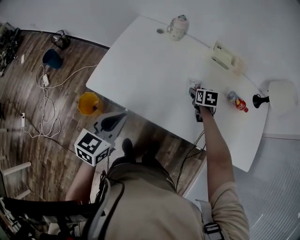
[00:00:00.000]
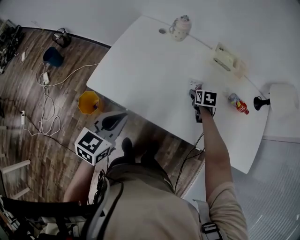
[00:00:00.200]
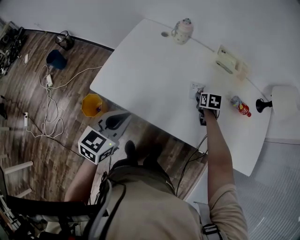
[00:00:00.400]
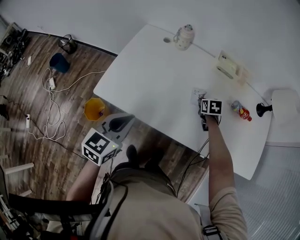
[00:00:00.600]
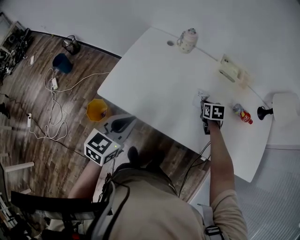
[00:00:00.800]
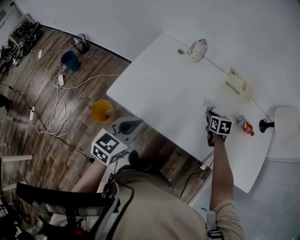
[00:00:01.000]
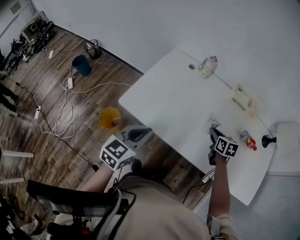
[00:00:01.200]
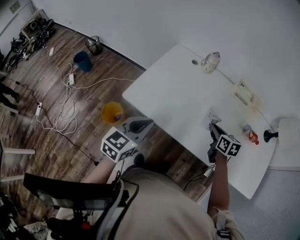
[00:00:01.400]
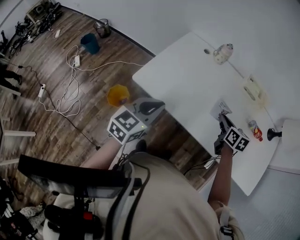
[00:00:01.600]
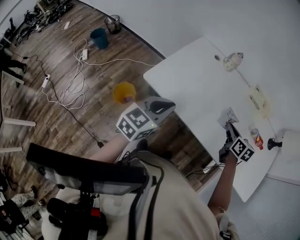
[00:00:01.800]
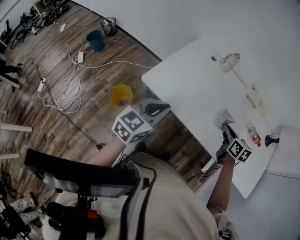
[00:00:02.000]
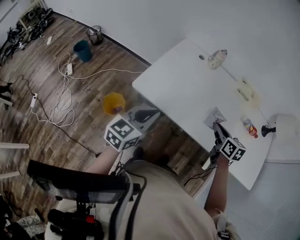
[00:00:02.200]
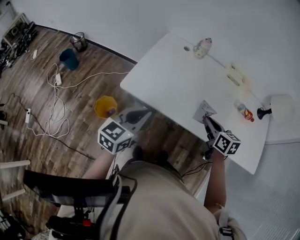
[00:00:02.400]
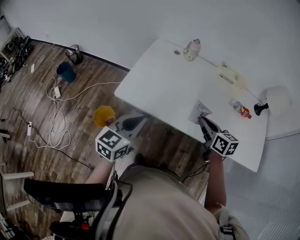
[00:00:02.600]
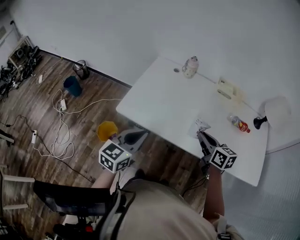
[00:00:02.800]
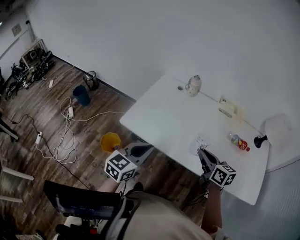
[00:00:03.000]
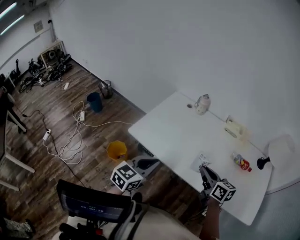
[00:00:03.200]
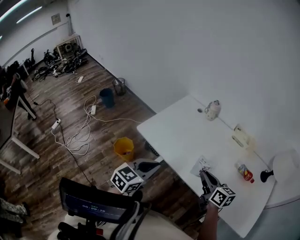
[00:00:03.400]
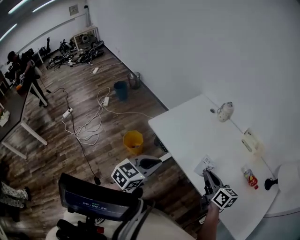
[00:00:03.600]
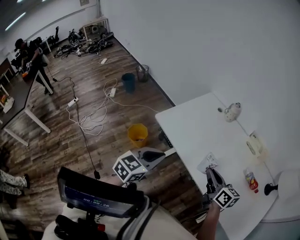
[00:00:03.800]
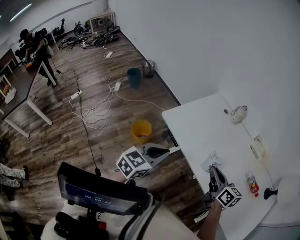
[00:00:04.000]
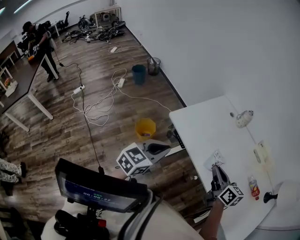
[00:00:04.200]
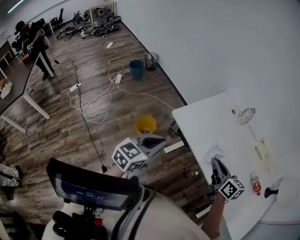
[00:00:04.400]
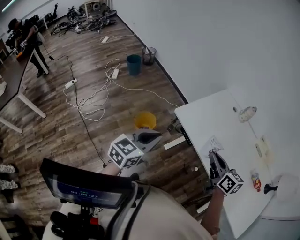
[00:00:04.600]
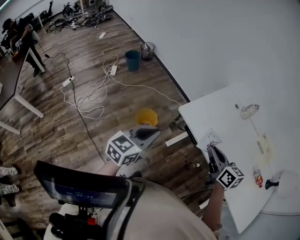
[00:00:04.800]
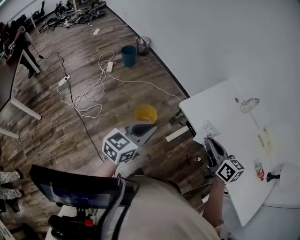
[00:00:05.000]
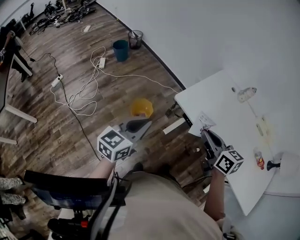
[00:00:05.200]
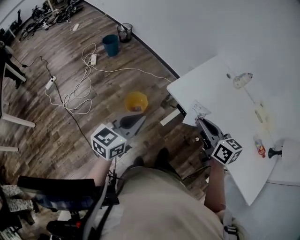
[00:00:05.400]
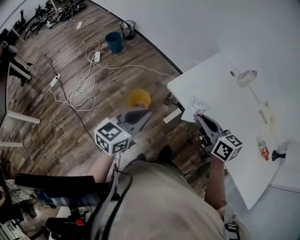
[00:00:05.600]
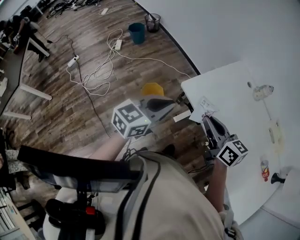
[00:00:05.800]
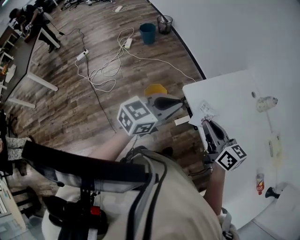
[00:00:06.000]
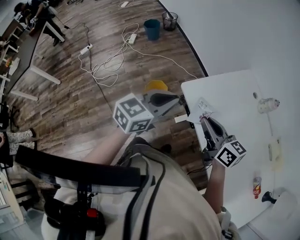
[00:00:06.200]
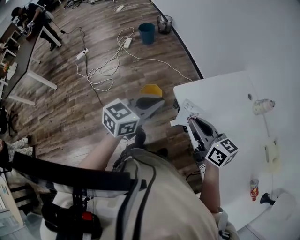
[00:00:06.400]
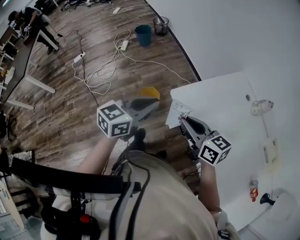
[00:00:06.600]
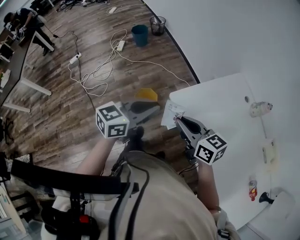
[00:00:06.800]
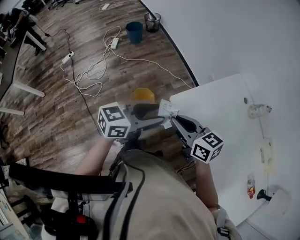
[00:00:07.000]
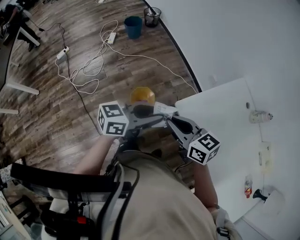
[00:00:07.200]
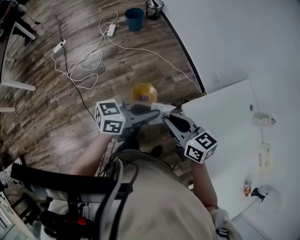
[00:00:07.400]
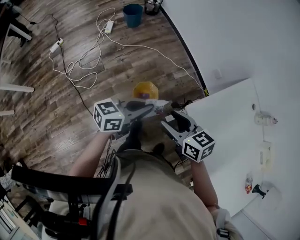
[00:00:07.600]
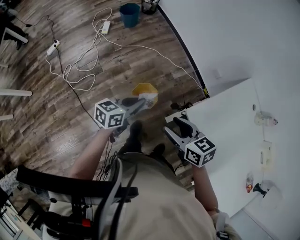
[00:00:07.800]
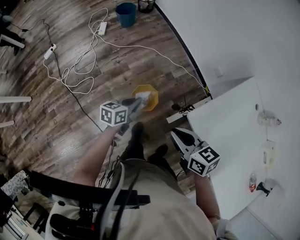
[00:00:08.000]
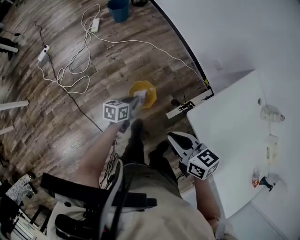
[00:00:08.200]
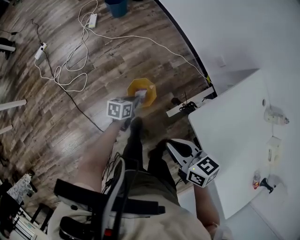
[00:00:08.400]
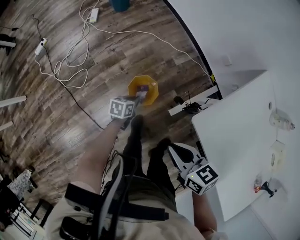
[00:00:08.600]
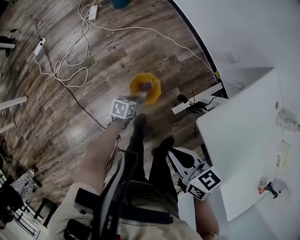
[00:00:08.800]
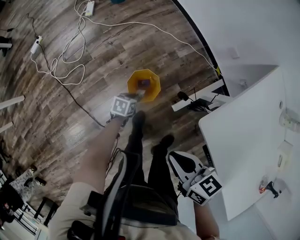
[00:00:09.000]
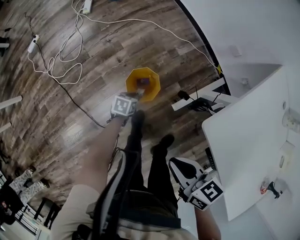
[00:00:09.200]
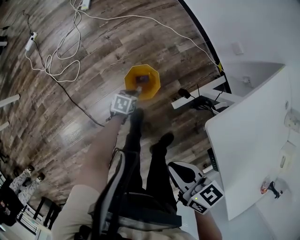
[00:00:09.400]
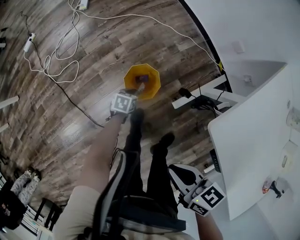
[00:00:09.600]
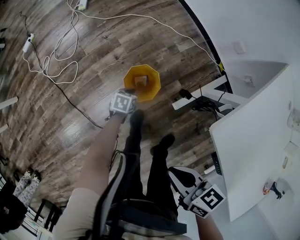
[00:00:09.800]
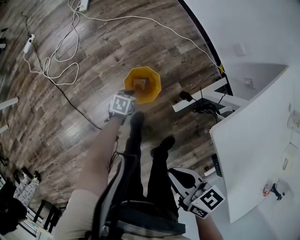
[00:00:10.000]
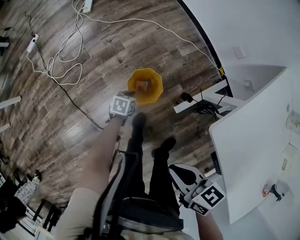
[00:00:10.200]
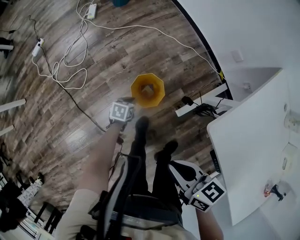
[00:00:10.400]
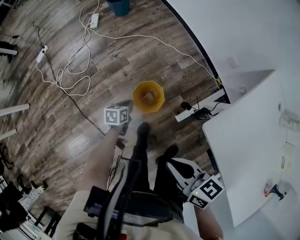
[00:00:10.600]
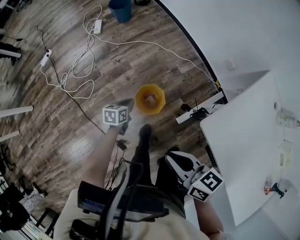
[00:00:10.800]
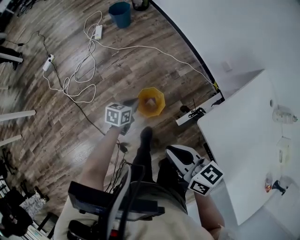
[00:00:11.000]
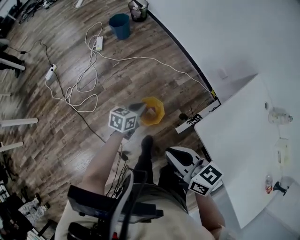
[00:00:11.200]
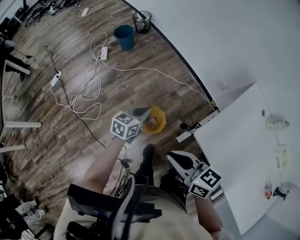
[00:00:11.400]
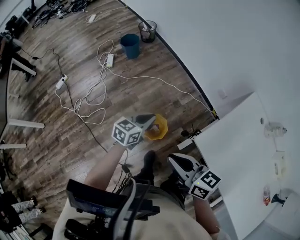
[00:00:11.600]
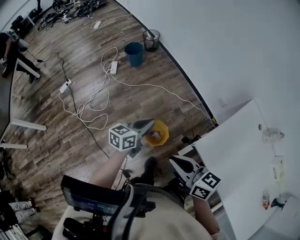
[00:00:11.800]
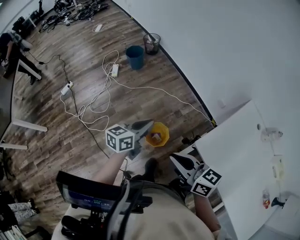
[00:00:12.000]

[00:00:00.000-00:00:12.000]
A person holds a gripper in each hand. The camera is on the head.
00:00:00.000 to 00:00:01.600: The right gripper shifts some 15 cm upward and backward, swivels approximately 20 degrees, and closes. The left gripper shifts by about 5 cm.
00:00:01.600 to 00:00:03.000: The right gripper shifts about 20 cm backward and upward. Meanwhile the left gripper heads backward, covering some 10 cm, and moves roughly 10 cm to the left and comes back.
00:00:03.000 to 00:00:04.400: Both grippers move to the left, roughly 15 cm. The left gripper turns by roughly 20 degrees.
00:00:04.400 to 00:00:06.000: The left gripper shifts some 15 cm forward, and moves roughly 15 cm to the left and comes back. Meanwhile the right gripper goes some 20 cm to the left and forward, and swivels roughly 20 degrees.
00:00:06.000 to 00:00:07.600: Both grippers move to the left, forward and downward, some 30 cm. The left gripper changes its angle by some 20 degrees, and opens, then closes again, while the right gripper swivels some 20 degrees, and opens its fingers.
00:00:07.600 to 00:00:09.000: The right gripper moves downward, approximately 15 cm, and closes its fingers. Meanwhile the left gripper moves downward, about 50 cm, and points its fingers approximately 50 degrees further downward.
00:00:09.000 to 00:00:10.400: The left gripper travels downward and back again, about 10 cm each way.
00:00:10.400 to 00:00:12.000: The right gripper moves upward, some 25 cm, and changes its angle by some 30 degrees. Meanwhile the left gripper heads upward, covering about 50 cm, and angles its fingers upward, by some 40 degrees.

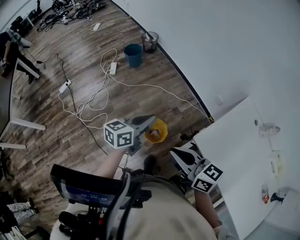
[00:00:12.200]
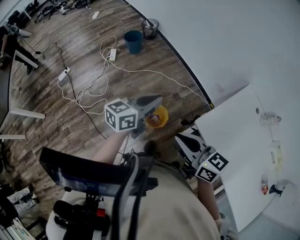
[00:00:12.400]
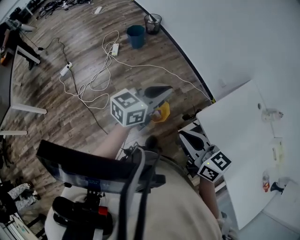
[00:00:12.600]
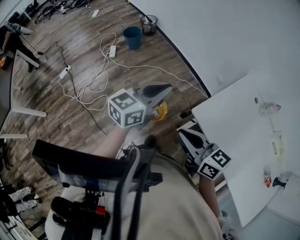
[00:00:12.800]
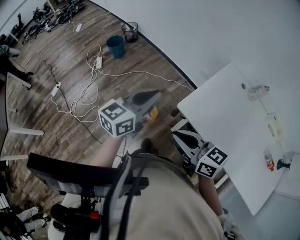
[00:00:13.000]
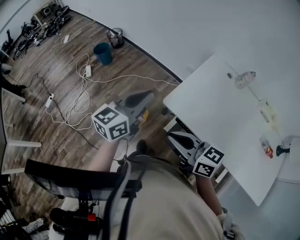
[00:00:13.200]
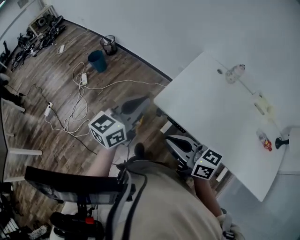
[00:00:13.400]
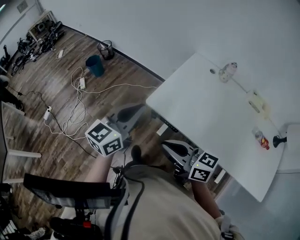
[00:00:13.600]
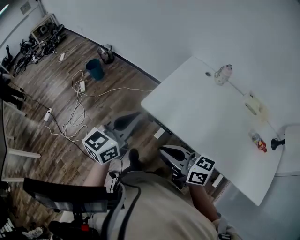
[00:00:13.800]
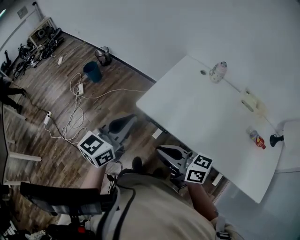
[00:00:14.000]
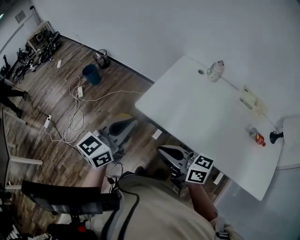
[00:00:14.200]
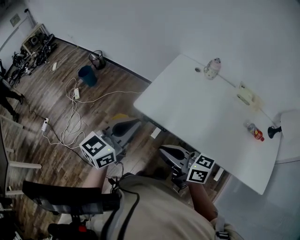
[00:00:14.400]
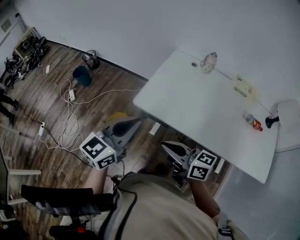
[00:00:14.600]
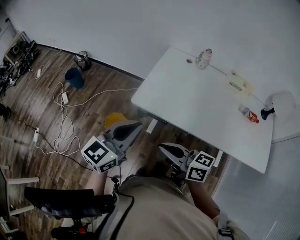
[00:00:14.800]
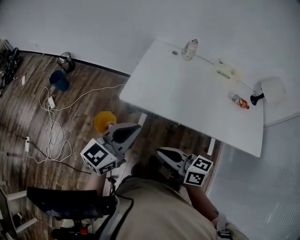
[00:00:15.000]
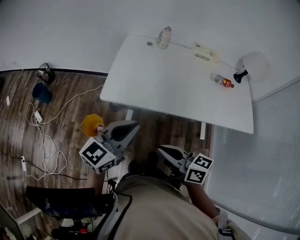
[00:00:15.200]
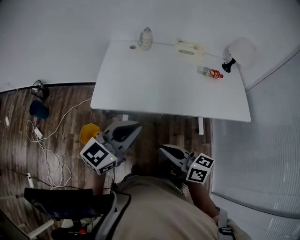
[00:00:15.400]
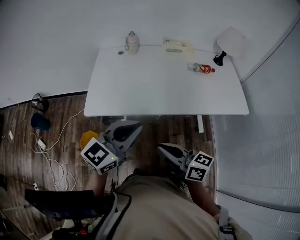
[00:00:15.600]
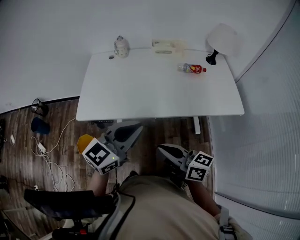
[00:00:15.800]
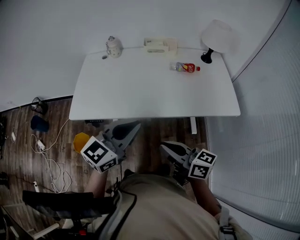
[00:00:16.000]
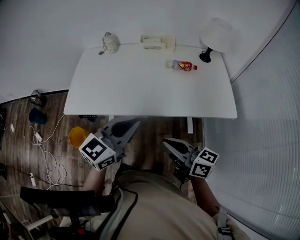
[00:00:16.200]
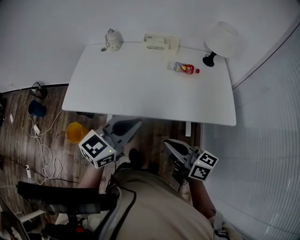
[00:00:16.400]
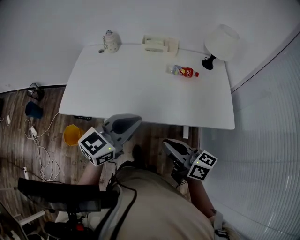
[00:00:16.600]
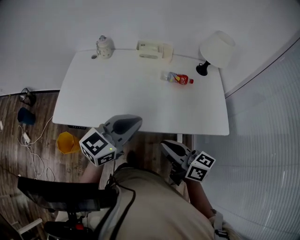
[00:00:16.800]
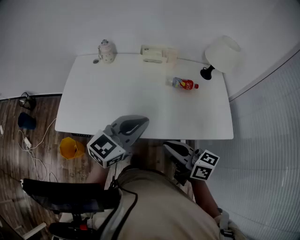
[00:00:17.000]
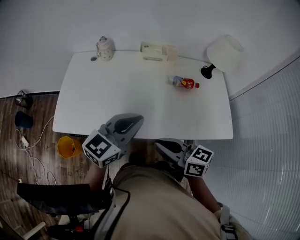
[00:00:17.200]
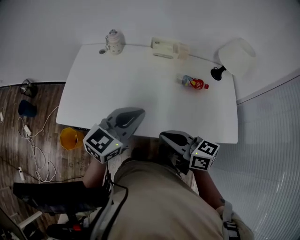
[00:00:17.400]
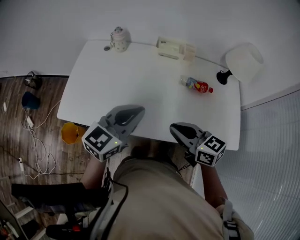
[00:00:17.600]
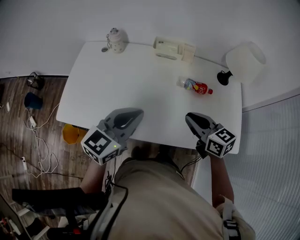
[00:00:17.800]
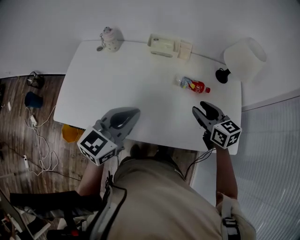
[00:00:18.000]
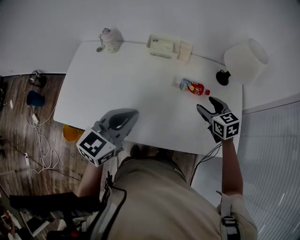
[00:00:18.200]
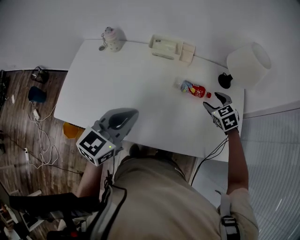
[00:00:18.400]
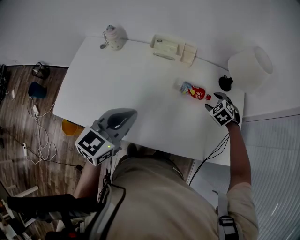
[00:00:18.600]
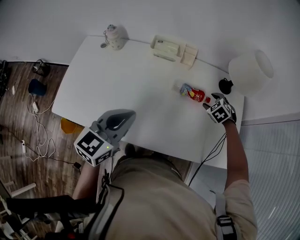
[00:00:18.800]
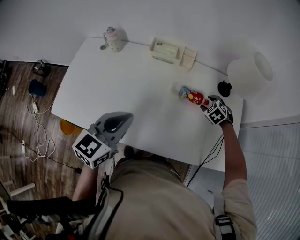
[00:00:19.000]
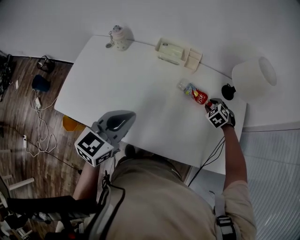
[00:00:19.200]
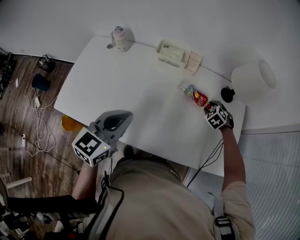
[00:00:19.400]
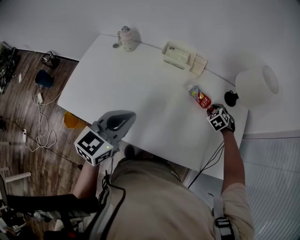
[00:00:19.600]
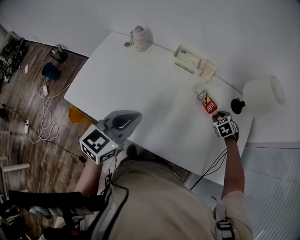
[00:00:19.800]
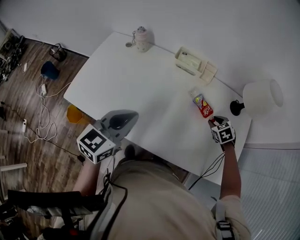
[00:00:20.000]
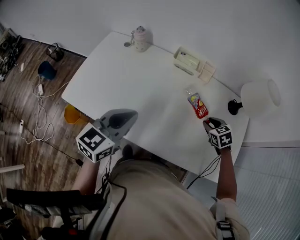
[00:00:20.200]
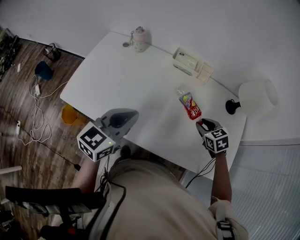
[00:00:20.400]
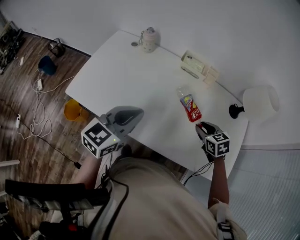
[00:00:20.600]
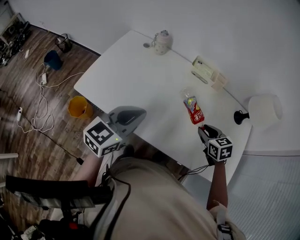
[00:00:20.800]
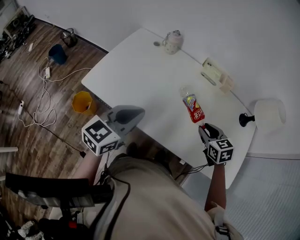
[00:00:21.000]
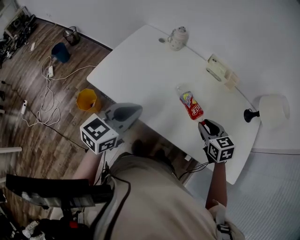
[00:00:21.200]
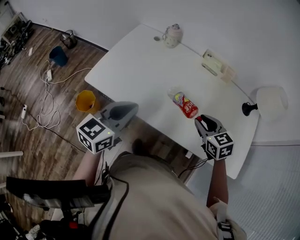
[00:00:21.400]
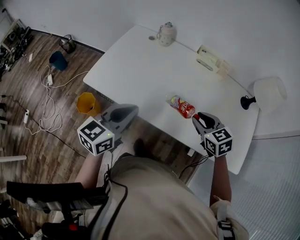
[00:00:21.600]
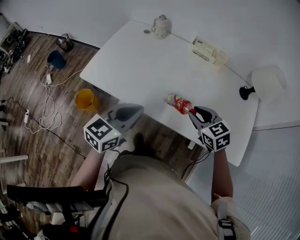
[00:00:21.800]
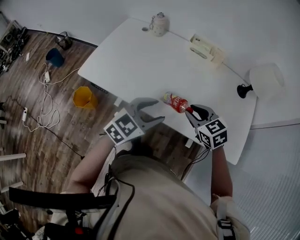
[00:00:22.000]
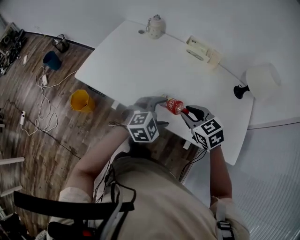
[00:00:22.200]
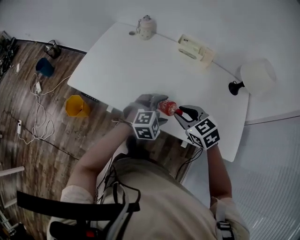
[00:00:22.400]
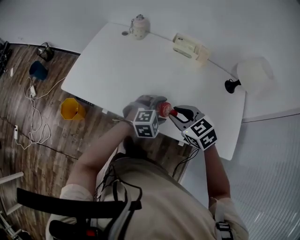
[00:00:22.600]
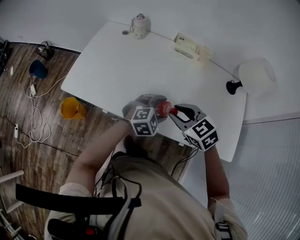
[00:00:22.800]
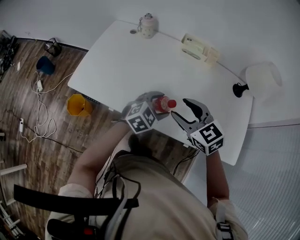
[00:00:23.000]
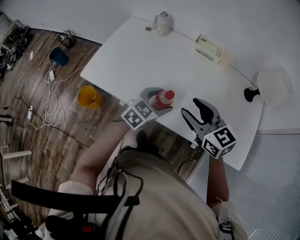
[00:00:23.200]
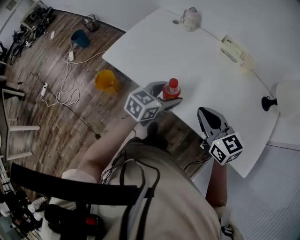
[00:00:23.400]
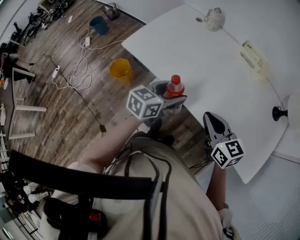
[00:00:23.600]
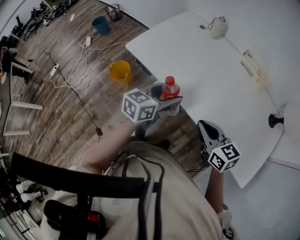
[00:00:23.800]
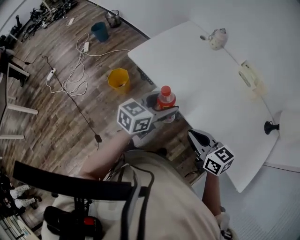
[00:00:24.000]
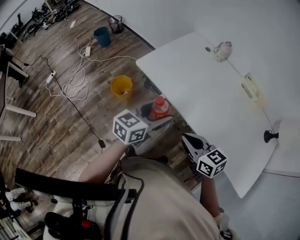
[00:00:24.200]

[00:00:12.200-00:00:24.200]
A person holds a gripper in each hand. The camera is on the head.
00:00:12.200 to 00:00:13.800: The left gripper shifts roughly 40 cm to the right, backward and upward, and swivels approximately 30 degrees. The right gripper goes about 35 cm to the right and backward.
00:00:13.800 to 00:00:15.200: The right gripper changes place by about 10 cm, and turns by some 30 degrees. Meanwhile the left gripper changes place by some 10 cm, and swivels roughly 40 degrees.
00:00:15.200 to 00:00:16.600: The two grippers travel together, to the right, some 40 cm.
00:00:16.600 to 00:00:18.200: The right gripper goes approximately 40 cm forward and to the right, angles its fingers downward, by roughly 40 degrees, and opens up, while the left gripper travels forward by approximately 20 cm.
00:00:18.200 to 00:00:19.800: The right gripper goes approximately 15 cm downward and forward, turns by some 40 degrees, and closes.
00:00:19.800 to 00:00:21.200: The right gripper is displaced to the left, backward and upward by approximately 35 cm, and turns by about 30 degrees. The left gripper is displaced to the left and backward by about 20 cm.
00:00:21.200 to 00:00:22.600: The left gripper shifts roughly 30 cm to the right and downward, rotates around the line of its fingers by approximately 50 degrees, clockwise from behind, and opens. Meanwhile the right gripper moves backward, approximately 5 cm.
00:00:22.600 to 00:00:24.200: The left gripper ends up approximately 35 cm from where it was, and twists roughly 70 degrees counterclockwise, seen from behind. The right gripper moves about 25 cm, rotates approximately 30 degrees, and closes up.
